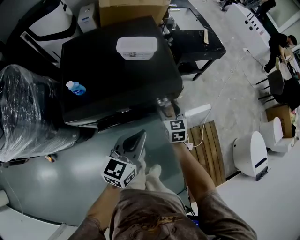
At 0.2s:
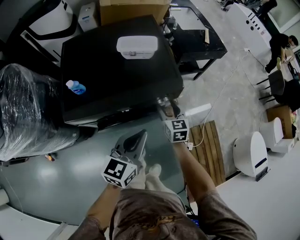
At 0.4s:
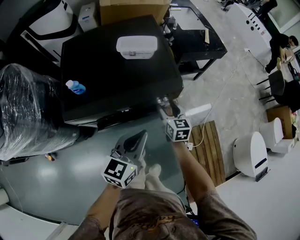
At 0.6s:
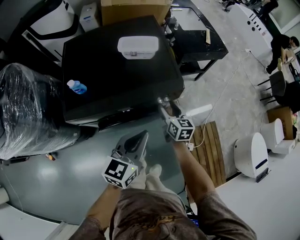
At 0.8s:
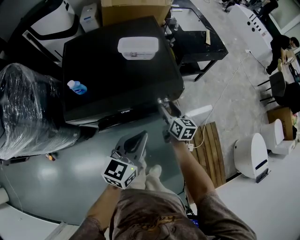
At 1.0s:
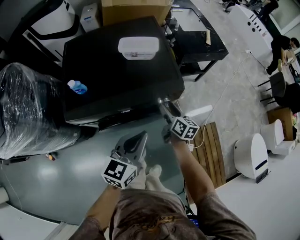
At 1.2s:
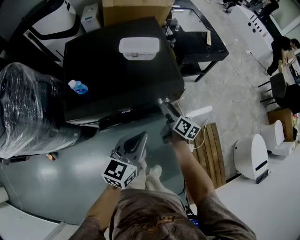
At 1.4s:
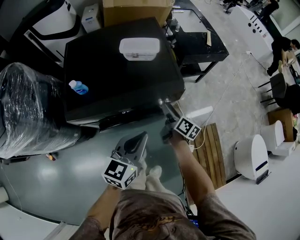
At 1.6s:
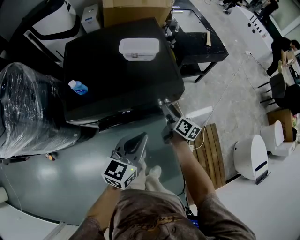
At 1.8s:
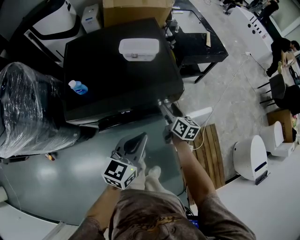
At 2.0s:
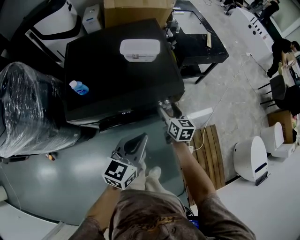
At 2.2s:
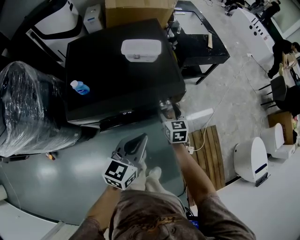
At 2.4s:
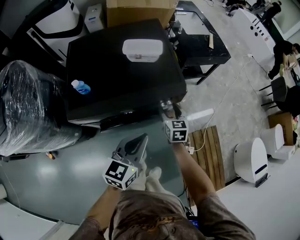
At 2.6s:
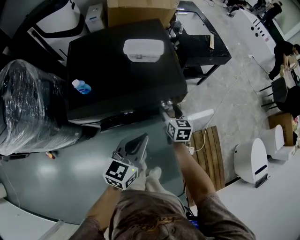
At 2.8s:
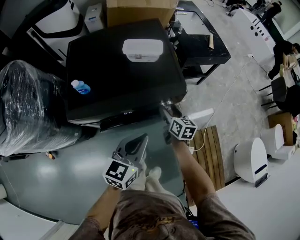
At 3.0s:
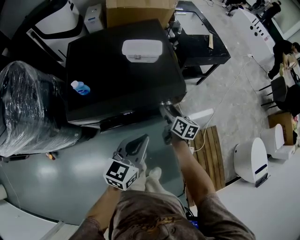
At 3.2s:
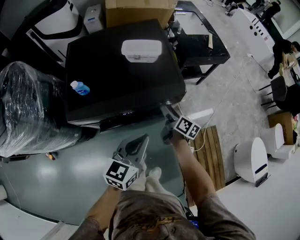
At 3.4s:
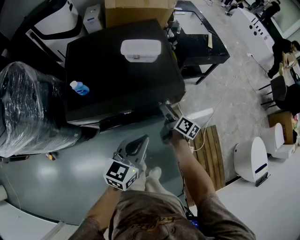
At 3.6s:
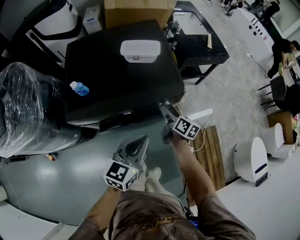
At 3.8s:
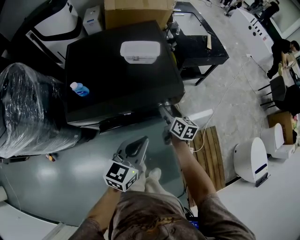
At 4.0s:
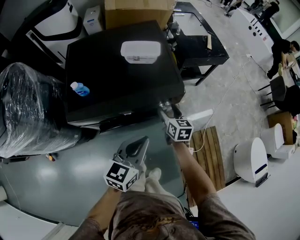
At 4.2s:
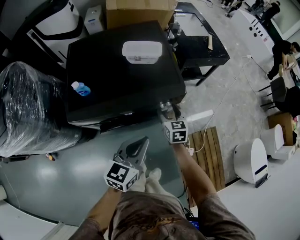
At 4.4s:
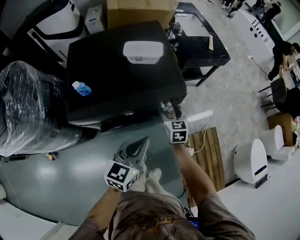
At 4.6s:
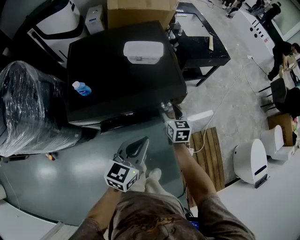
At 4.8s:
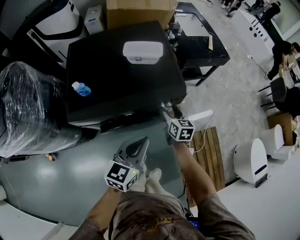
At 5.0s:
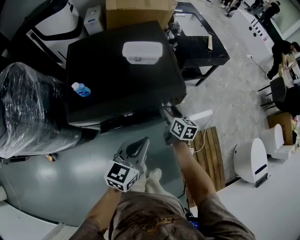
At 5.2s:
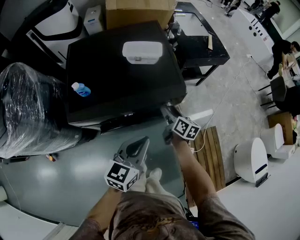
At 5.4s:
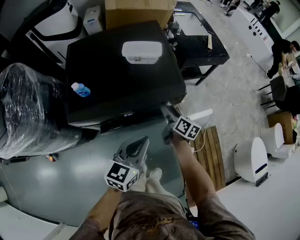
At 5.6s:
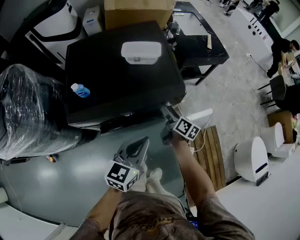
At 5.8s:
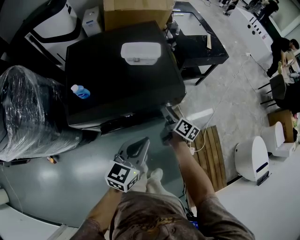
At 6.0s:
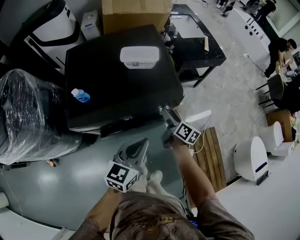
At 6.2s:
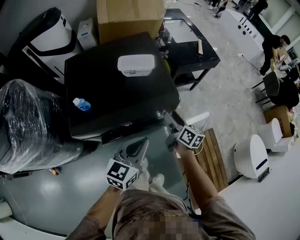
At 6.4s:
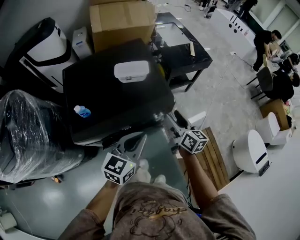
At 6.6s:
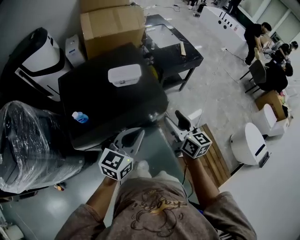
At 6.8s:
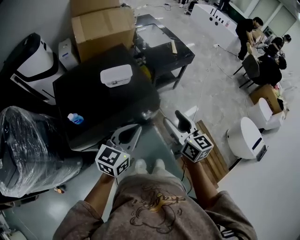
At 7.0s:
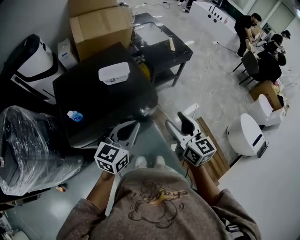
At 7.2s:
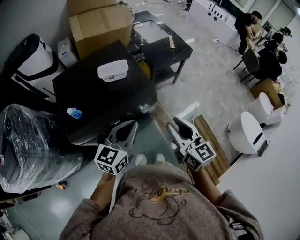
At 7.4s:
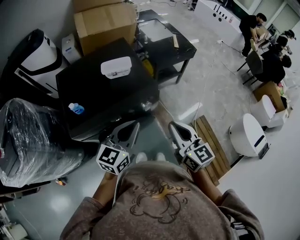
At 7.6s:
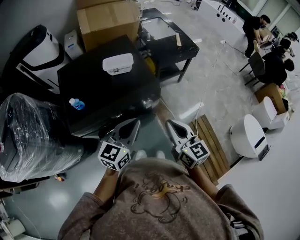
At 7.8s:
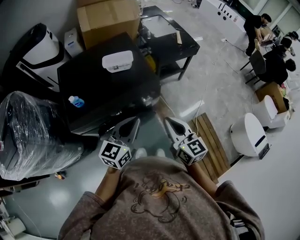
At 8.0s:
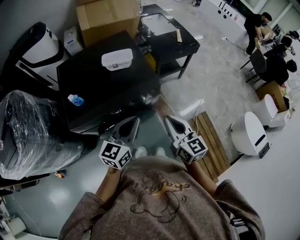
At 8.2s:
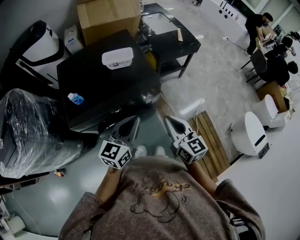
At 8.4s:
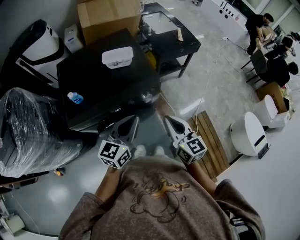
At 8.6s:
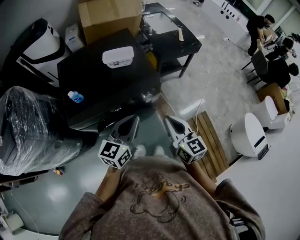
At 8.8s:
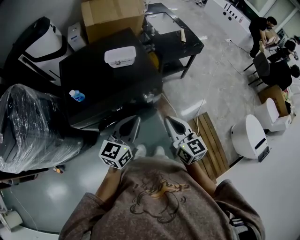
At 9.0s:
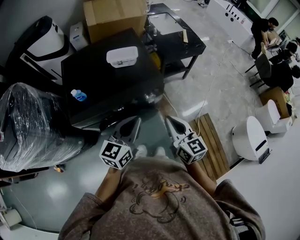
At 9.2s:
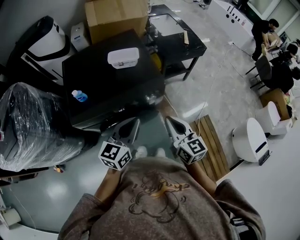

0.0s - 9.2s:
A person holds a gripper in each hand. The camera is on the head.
0.0s - 1.6s: The right gripper twists some 50 degrees clockwise, seen from behind.
3.0s - 4.6s: The right gripper rotates some 30 degrees.
4.6s - 6.2s: The right gripper moves upward, roughly 5 cm, and turns by some 40 degrees.
6.2s - 7.6s: The left gripper travels upward by about 5 cm. Meanwhile the right gripper moves upward and backward, roughly 25 cm, swivels approximately 30 degrees, and closes.
7.6s - 9.2s: The grippers make only small movements.

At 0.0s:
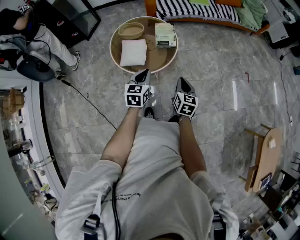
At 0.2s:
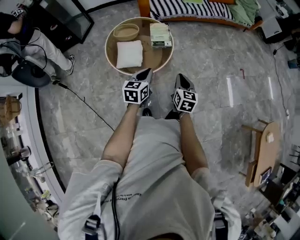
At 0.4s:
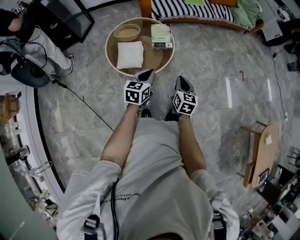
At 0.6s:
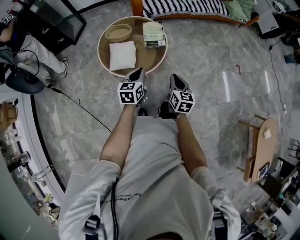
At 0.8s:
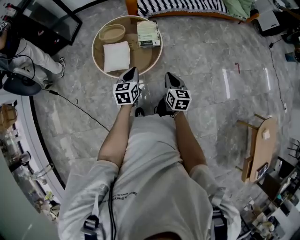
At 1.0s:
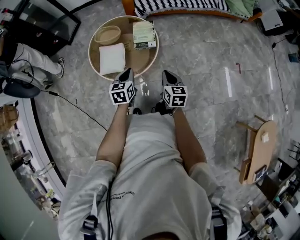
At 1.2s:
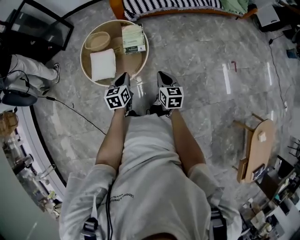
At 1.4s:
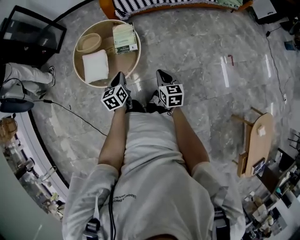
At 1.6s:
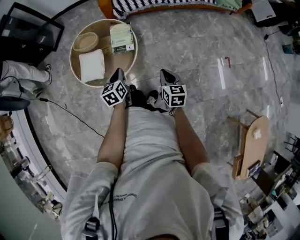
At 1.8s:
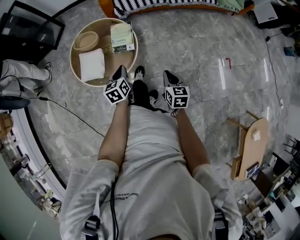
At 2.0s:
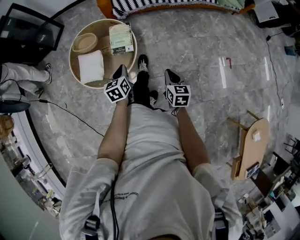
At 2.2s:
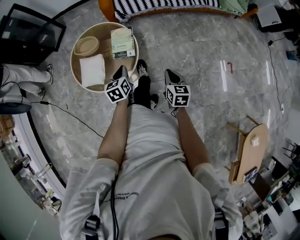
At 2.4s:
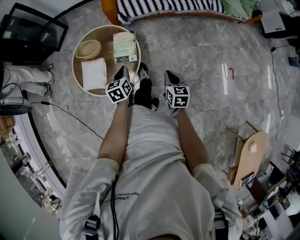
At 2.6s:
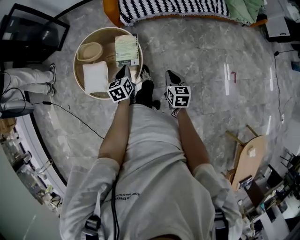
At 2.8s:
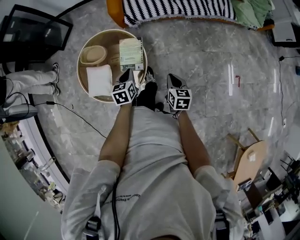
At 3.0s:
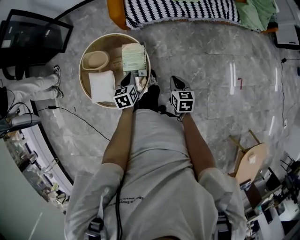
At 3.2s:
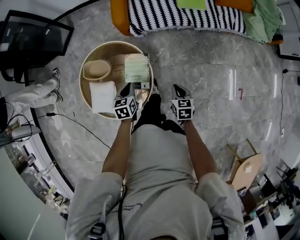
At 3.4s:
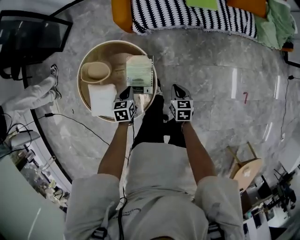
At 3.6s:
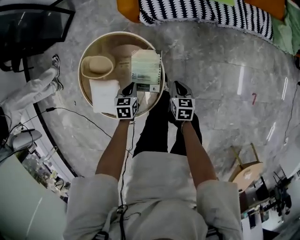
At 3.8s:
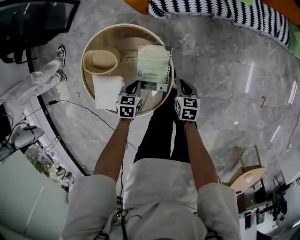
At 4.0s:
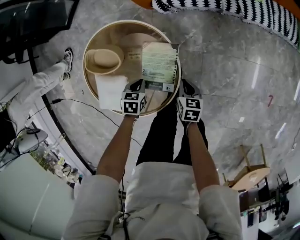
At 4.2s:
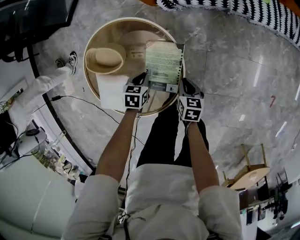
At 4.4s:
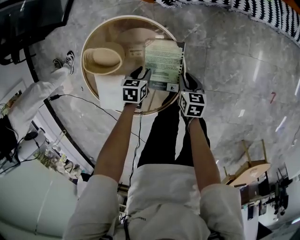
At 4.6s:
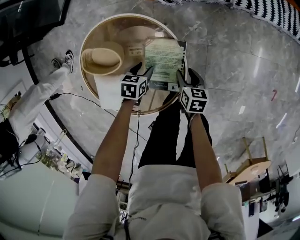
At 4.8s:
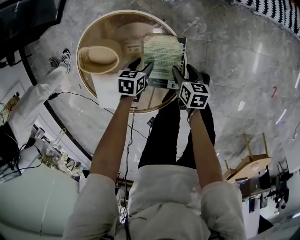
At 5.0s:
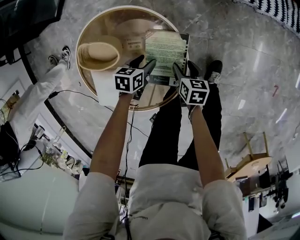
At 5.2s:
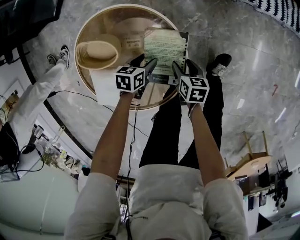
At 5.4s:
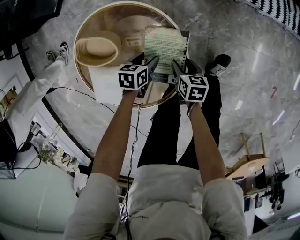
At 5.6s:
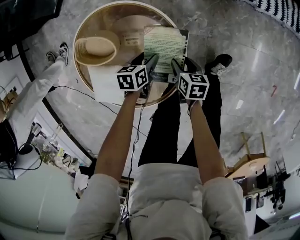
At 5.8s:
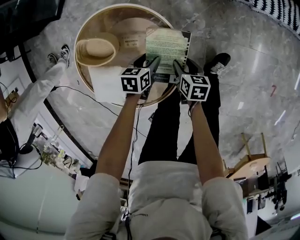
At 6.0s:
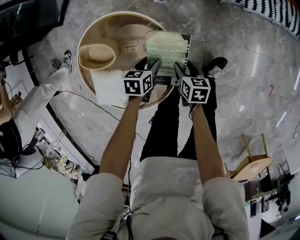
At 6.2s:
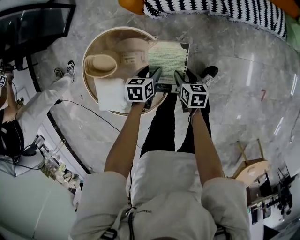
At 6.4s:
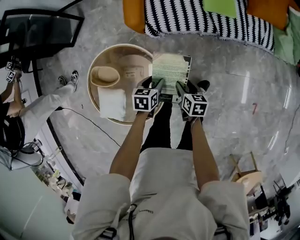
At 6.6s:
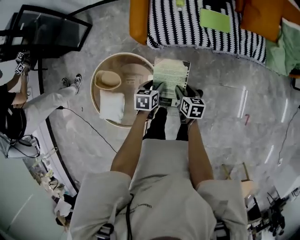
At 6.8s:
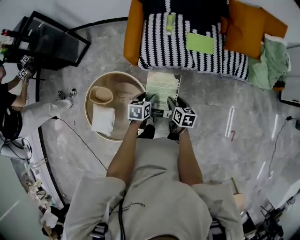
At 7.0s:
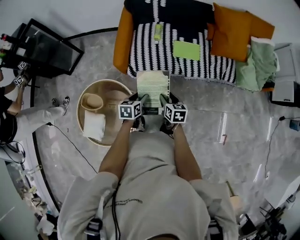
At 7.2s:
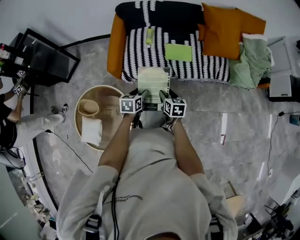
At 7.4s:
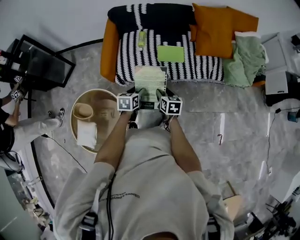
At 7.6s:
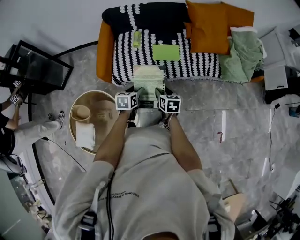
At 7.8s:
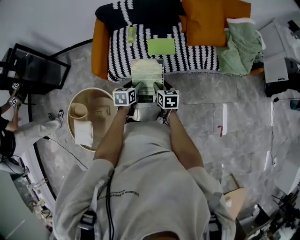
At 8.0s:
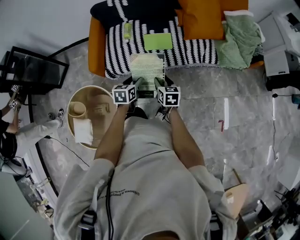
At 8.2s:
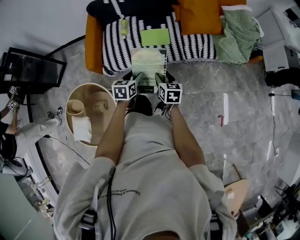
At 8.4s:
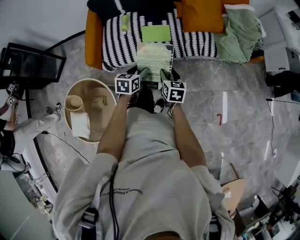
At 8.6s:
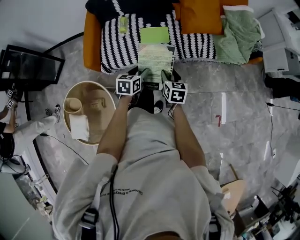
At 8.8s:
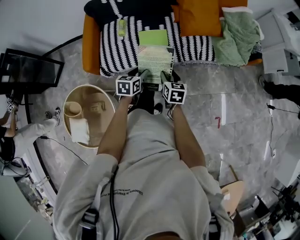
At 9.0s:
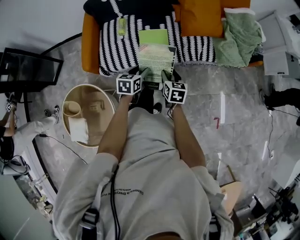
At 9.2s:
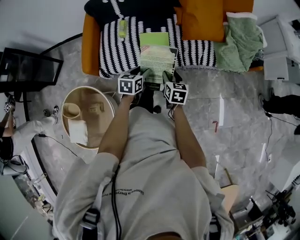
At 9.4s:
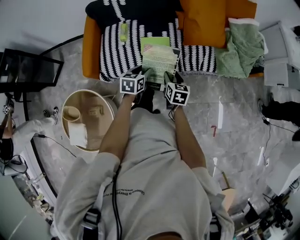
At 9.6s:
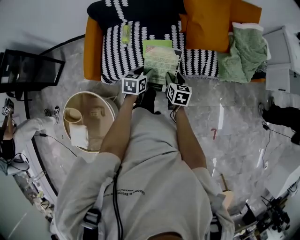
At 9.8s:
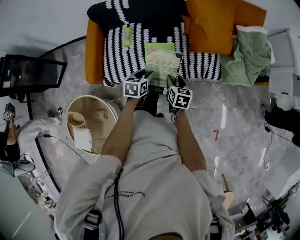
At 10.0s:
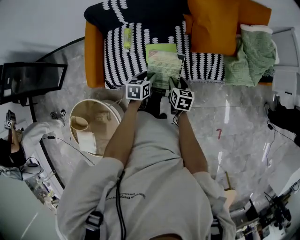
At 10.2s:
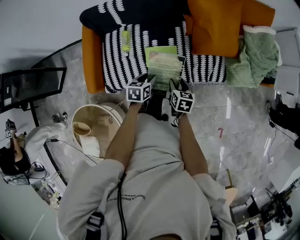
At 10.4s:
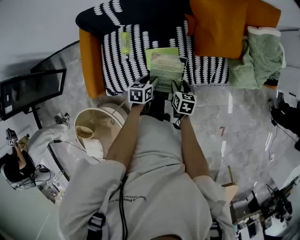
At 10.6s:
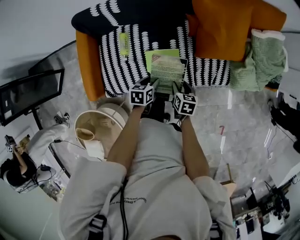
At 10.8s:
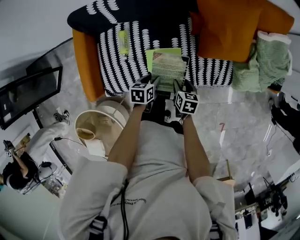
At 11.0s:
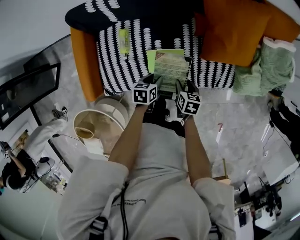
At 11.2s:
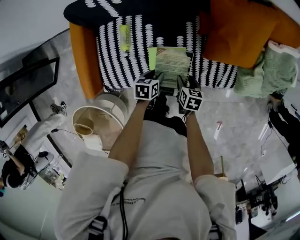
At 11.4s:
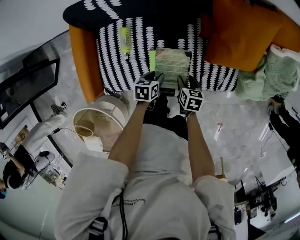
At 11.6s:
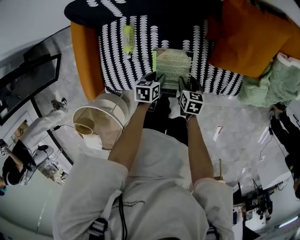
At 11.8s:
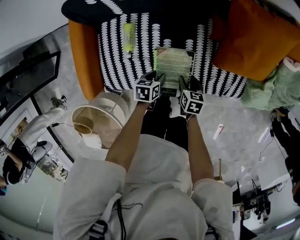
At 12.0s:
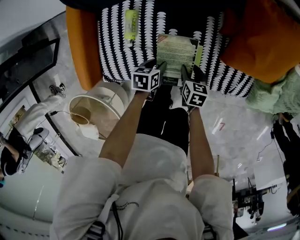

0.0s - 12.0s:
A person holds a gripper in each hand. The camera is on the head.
0.0s - 1.6s: The right gripper moves forward and to the right, some 25 cm, while the left gripper moves forward, to the right and downward, about 20 cm, and rotates approximately 20 degrees.
1.6s - 3.0s: The grippers both shift forward by about 20 cm.
3.0s - 4.4s: The right gripper is displaced downward, to the left and forward by roughly 30 cm; the left gripper travels downward by approximately 25 cm, swivels some 30 degrees, and opens.
4.4s - 6.0s: The left gripper goes approximately 5 cm to the right. Meanwhile the right gripper opens up.
6.0s - 7.6s: The grippers both shift to the right, upward and forward by approximately 40 cm.
7.6s - 9.0s: Both grippers move to the right and forward, approximately 15 cm.
9.0s - 10.4s: Both grippers travel together forward, approximately 25 cm.
10.4s - 12.0s: Both grippers move downward, forward and to the left, roughly 20 cm.

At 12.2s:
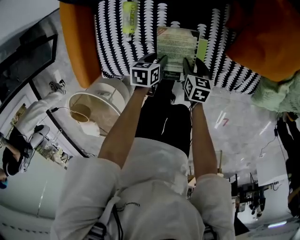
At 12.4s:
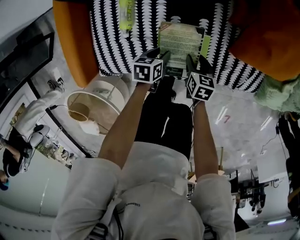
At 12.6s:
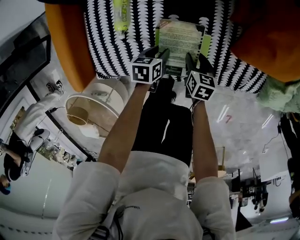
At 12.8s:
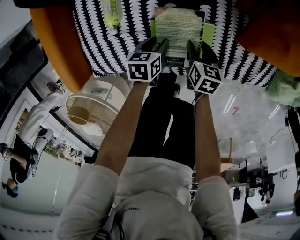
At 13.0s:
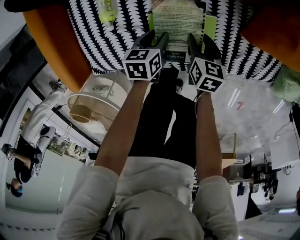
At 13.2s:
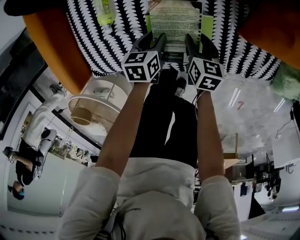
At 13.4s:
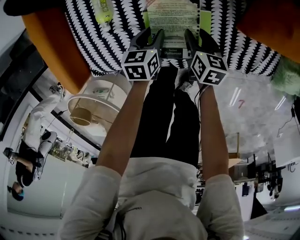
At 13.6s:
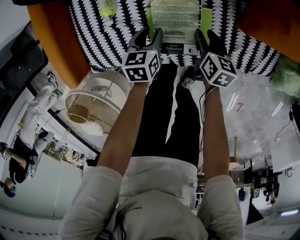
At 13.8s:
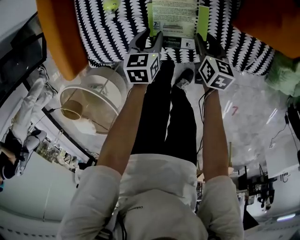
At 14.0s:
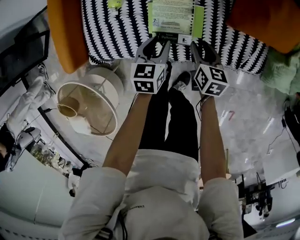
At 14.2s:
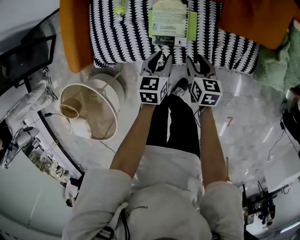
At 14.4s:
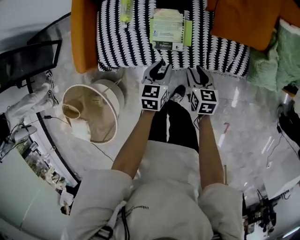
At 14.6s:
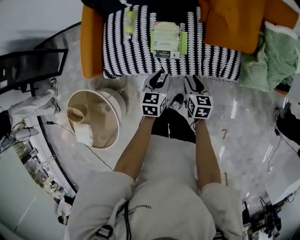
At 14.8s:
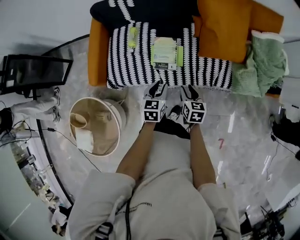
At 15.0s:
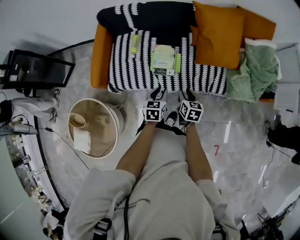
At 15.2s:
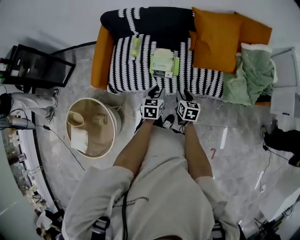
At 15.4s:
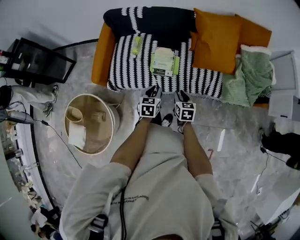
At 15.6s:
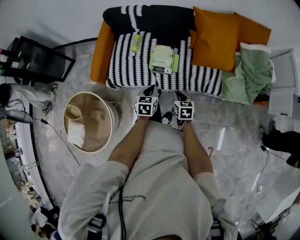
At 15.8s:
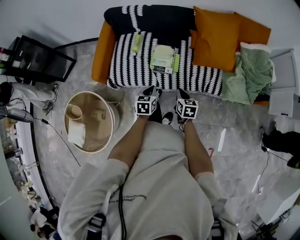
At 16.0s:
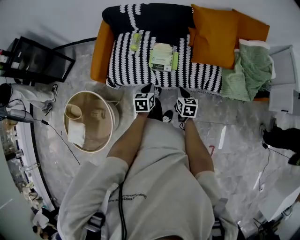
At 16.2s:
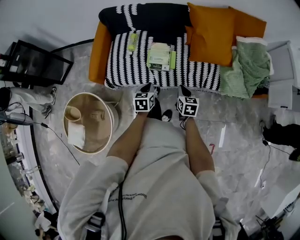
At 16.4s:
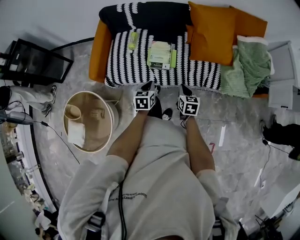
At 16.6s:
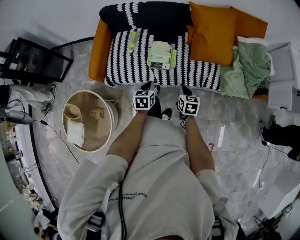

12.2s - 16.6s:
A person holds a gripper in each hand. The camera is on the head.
12.2s - 13.6s: The grippers both shift downward by about 5 cm. The left gripper rotates roughly 20 degrees.
13.6s - 15.2s: The two grippers go approximately 40 cm upward and backward.
15.2s - 16.6s: The right gripper closes, while the left gripper changes place by roughly 5 cm, and closes up.
